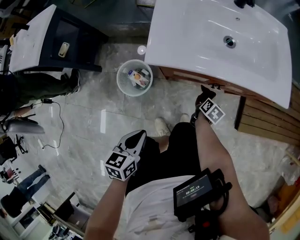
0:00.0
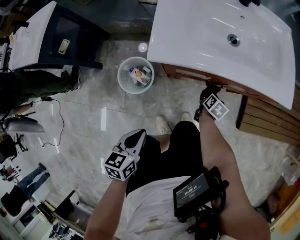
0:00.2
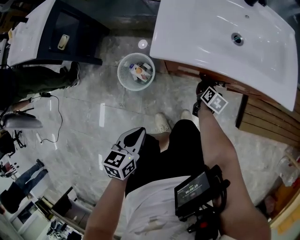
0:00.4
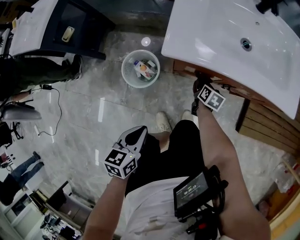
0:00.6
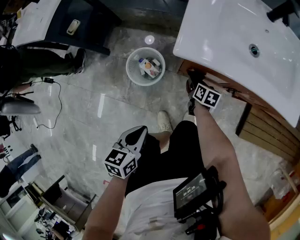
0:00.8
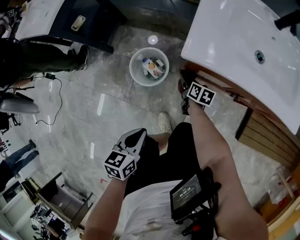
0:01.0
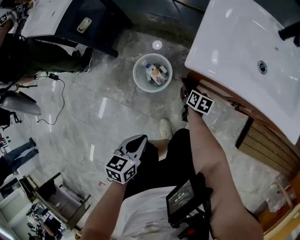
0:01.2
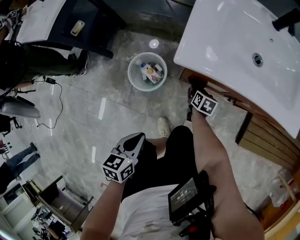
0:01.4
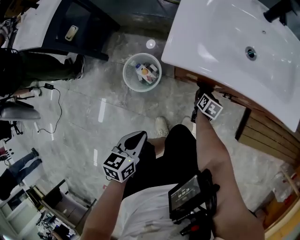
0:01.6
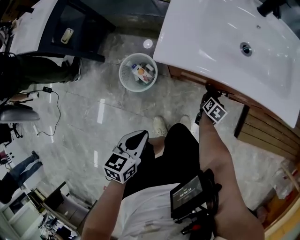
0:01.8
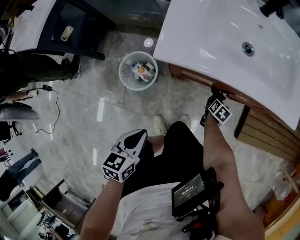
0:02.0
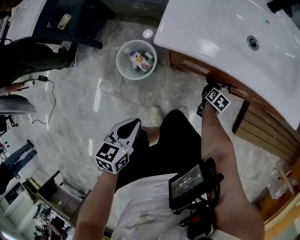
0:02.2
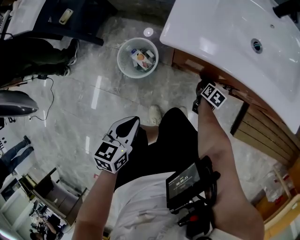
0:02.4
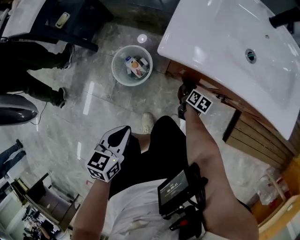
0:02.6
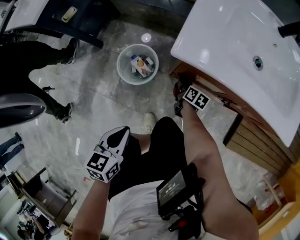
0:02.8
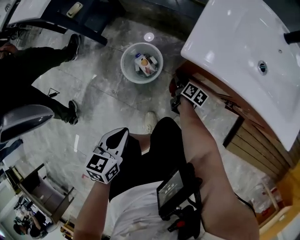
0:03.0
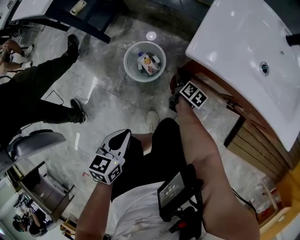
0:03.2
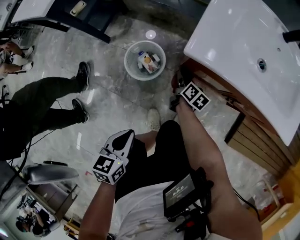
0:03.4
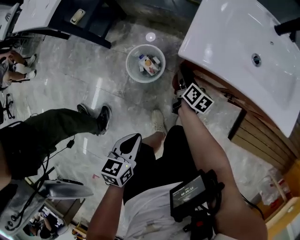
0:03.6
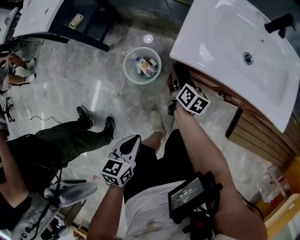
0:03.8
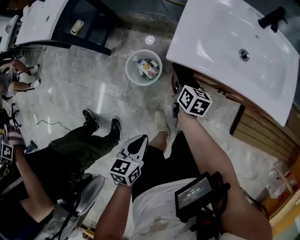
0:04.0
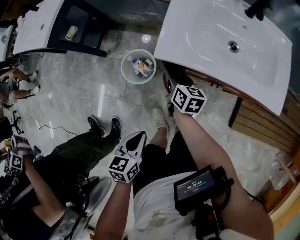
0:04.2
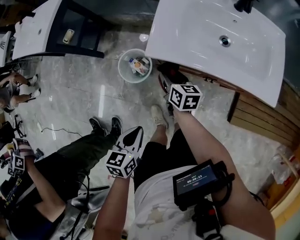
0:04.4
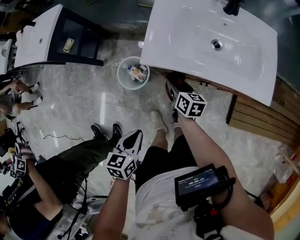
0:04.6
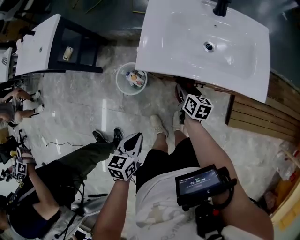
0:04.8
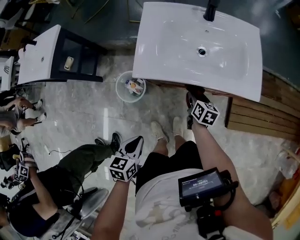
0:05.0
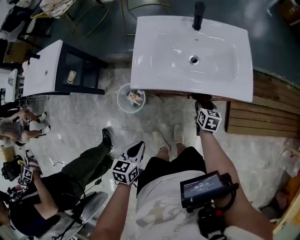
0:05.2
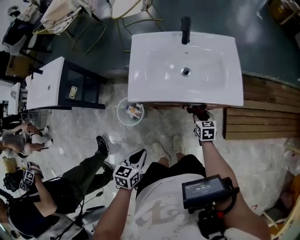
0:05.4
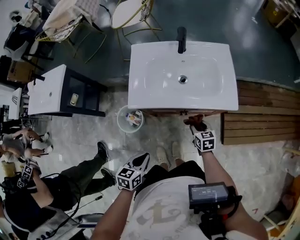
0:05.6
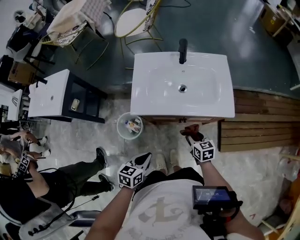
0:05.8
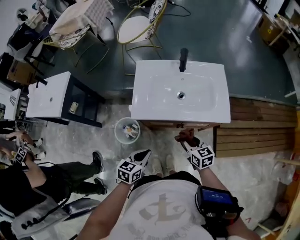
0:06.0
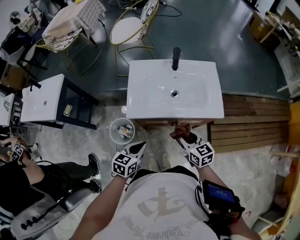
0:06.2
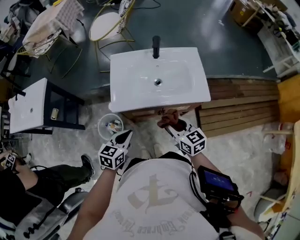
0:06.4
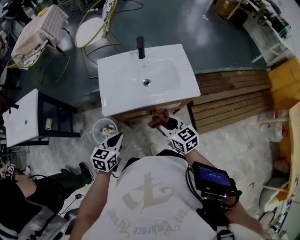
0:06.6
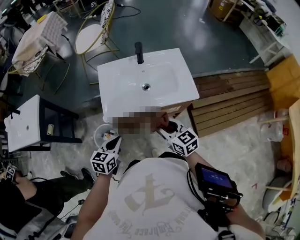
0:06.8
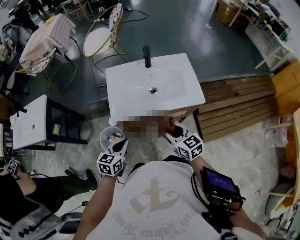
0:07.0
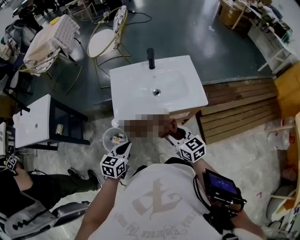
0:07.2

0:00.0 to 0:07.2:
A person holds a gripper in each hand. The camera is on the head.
0:00.0 to 0:01.4: The left gripper ends up about 5 cm from where it was; the right gripper moves approximately 15 cm, and changes its angle by roughly 30 degrees.
0:01.4 to 0:02.8: The right gripper moves downward, about 5 cm.
0:02.8 to 0:04.4: The left gripper is displaced upward and to the right by some 15 cm, while the right gripper moves upward, roughly 30 cm, and turns by some 20 degrees.
0:04.4 to 0:05.8: The right gripper is displaced to the right by approximately 25 cm, while the left gripper is displaced to the right, upward and forward by about 15 cm, and swivels roughly 20 degrees.
0:05.8 to 0:07.2: The left gripper moves upward, approximately 5 cm. Meanwhile the right gripper heads upward, covering about 15 cm.

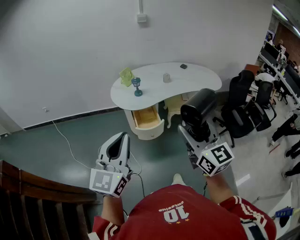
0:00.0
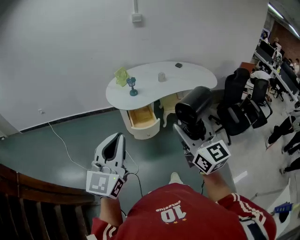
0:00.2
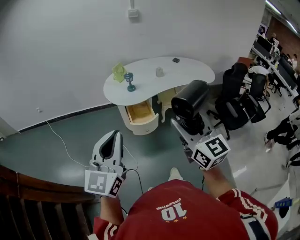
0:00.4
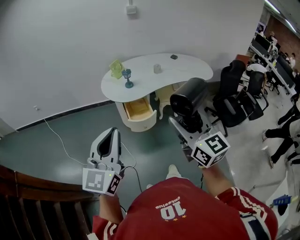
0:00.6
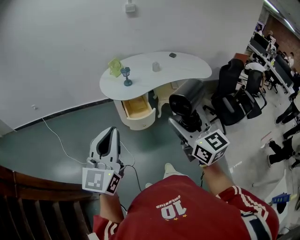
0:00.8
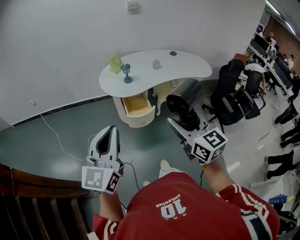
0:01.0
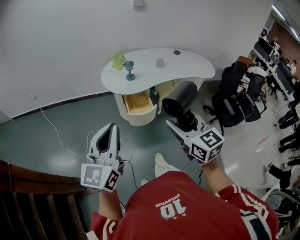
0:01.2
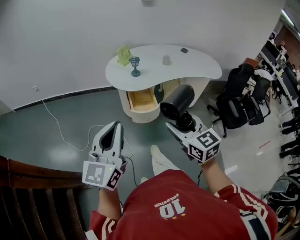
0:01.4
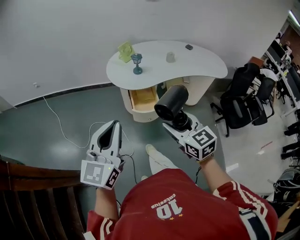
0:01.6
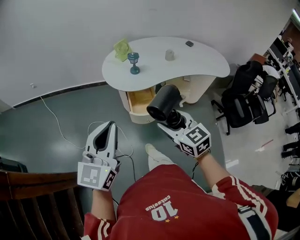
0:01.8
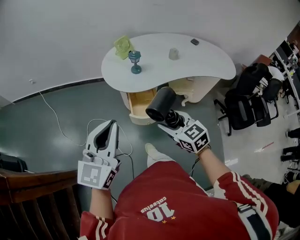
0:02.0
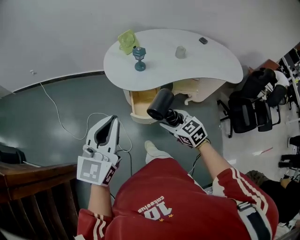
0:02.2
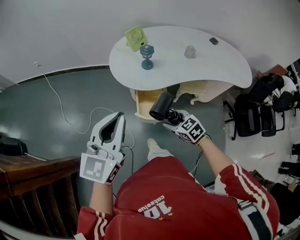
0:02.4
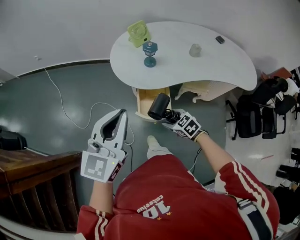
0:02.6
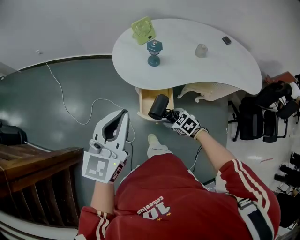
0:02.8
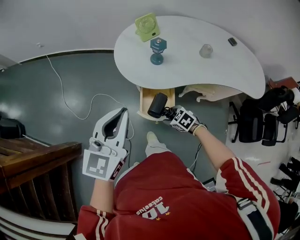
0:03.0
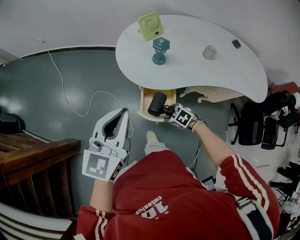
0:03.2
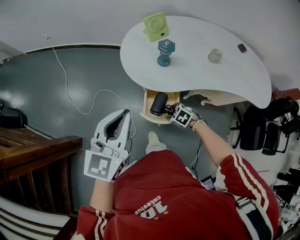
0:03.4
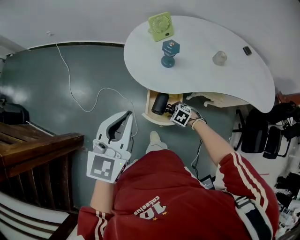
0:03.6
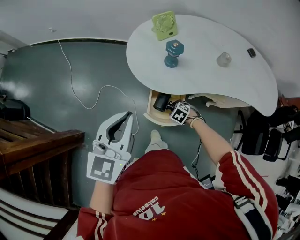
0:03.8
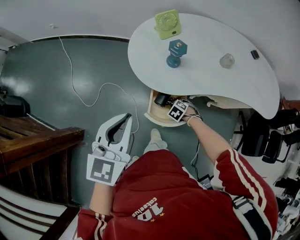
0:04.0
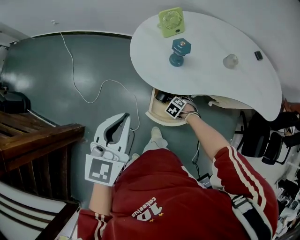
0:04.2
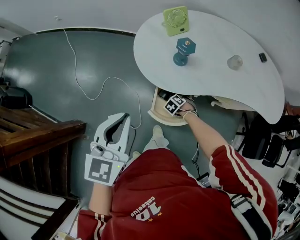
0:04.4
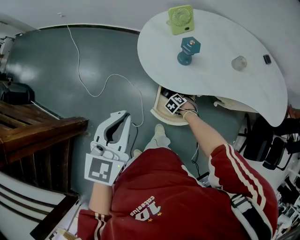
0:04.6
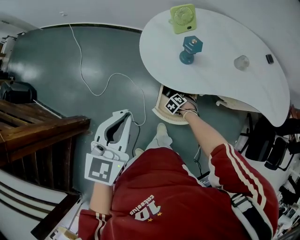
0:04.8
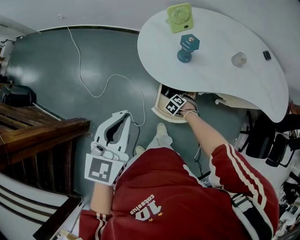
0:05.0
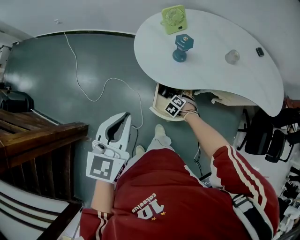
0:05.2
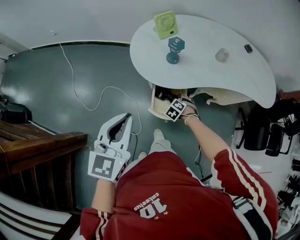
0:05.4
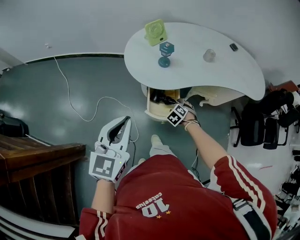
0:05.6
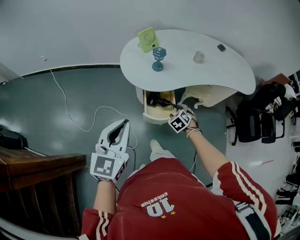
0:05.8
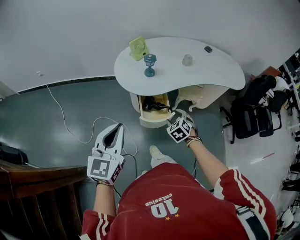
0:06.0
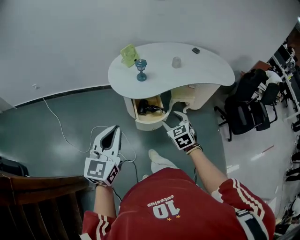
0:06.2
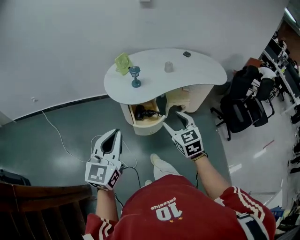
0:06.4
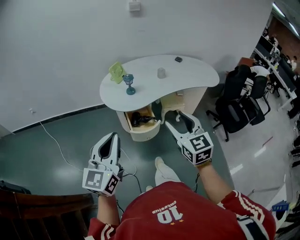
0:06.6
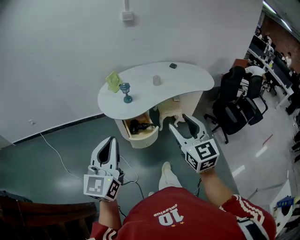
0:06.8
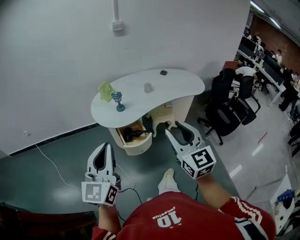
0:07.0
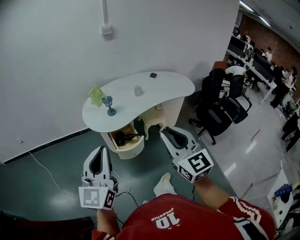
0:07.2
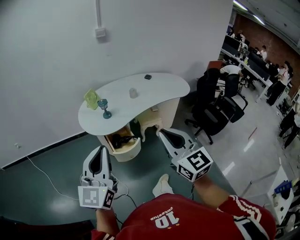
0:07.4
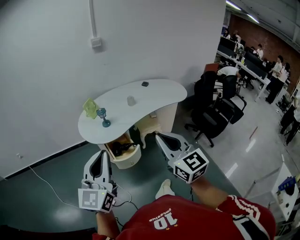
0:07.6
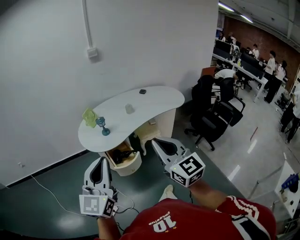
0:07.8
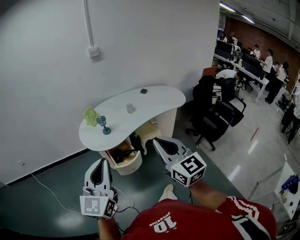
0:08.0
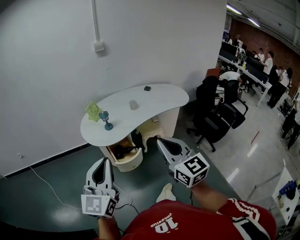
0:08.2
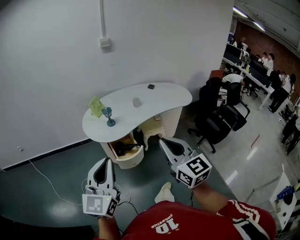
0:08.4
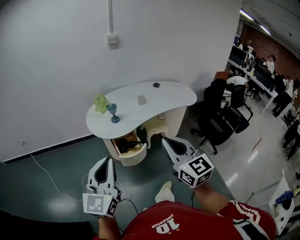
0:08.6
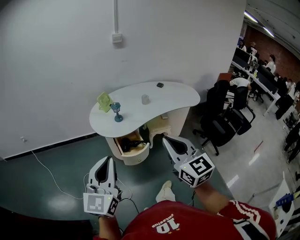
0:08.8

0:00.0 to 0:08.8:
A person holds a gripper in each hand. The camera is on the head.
0:00.0 to 0:01.4: The left gripper goes about 5 cm to the left. Meanwhile the right gripper is displaced downward and to the left by about 15 cm, and changes its angle by about 20 degrees.
0:01.4 to 0:03.0: The right gripper travels downward by approximately 40 cm, and tilts its fingers some 40 degrees downward. Meanwhile the left gripper shifts by about 35 cm.
0:03.0 to 0:04.4: The left gripper moves roughly 5 cm. Meanwhile the right gripper moves downward, about 15 cm, and rotates approximately 30 degrees.
0:04.4 to 0:05.8: The left gripper ends up about 10 cm from where it was; the right gripper moves upward, roughly 20 cm, and changes its angle by approximately 30 degrees.
0:05.8 to 0:07.4: The right gripper goes approximately 50 cm upward and backward, tilts its fingers roughly 60 degrees upward, and closes its fingers, while the left gripper shifts approximately 20 cm upward, backward and to the right, and turns by approximately 30 degrees.
0:07.4 to 0:08.8: The left gripper changes place by about 5 cm.

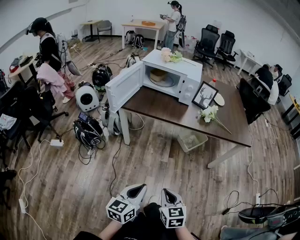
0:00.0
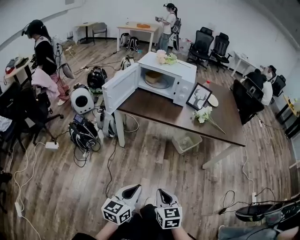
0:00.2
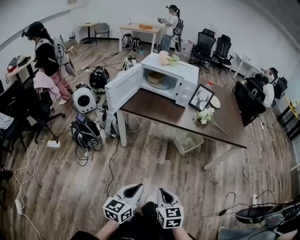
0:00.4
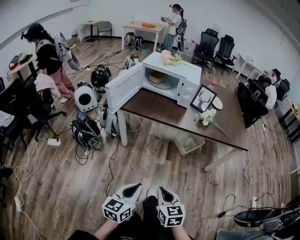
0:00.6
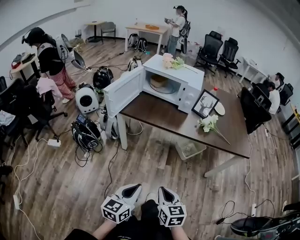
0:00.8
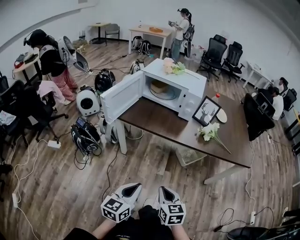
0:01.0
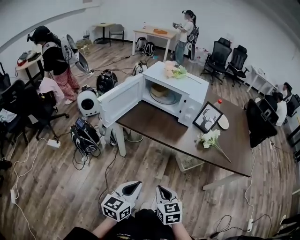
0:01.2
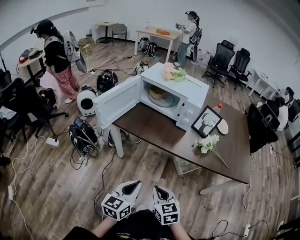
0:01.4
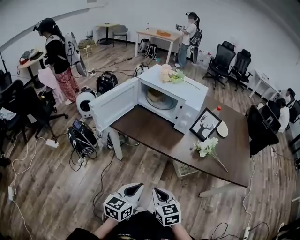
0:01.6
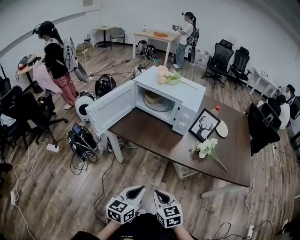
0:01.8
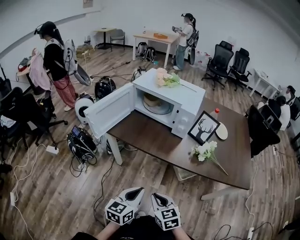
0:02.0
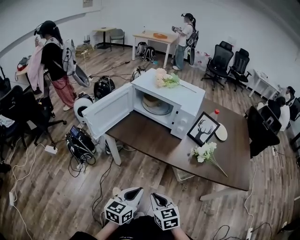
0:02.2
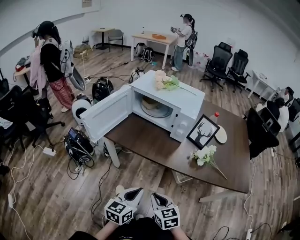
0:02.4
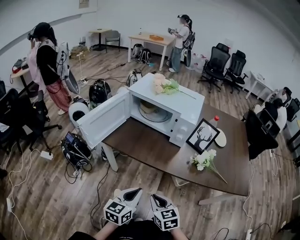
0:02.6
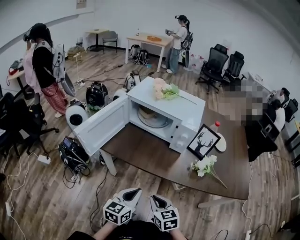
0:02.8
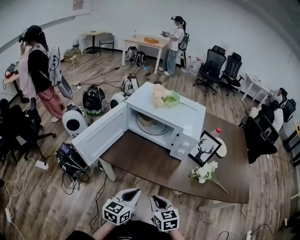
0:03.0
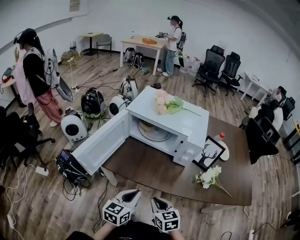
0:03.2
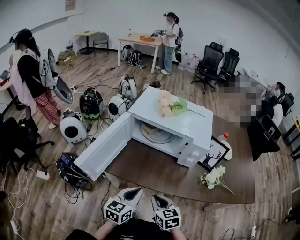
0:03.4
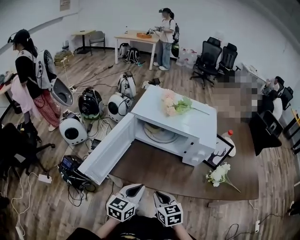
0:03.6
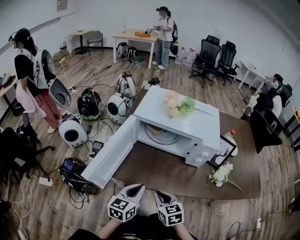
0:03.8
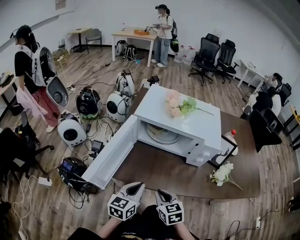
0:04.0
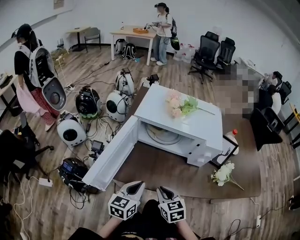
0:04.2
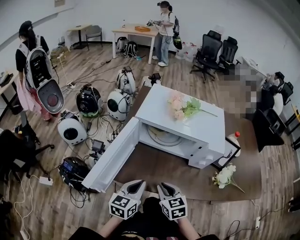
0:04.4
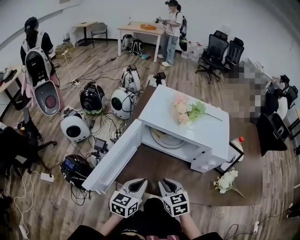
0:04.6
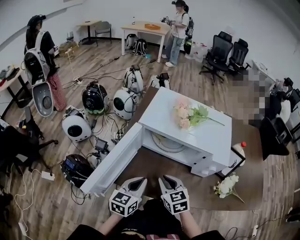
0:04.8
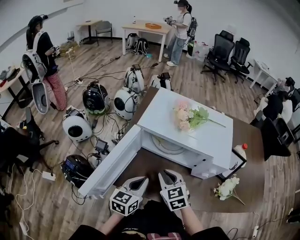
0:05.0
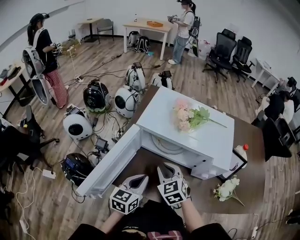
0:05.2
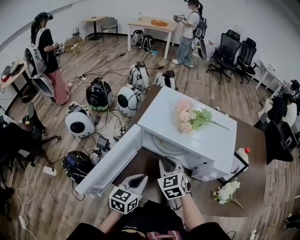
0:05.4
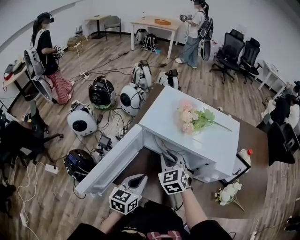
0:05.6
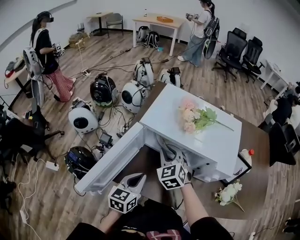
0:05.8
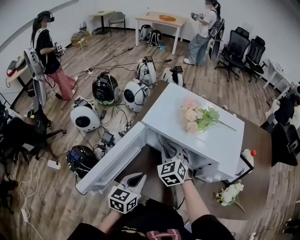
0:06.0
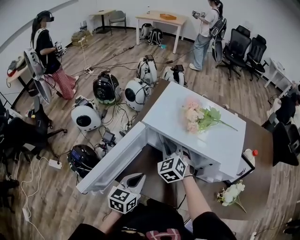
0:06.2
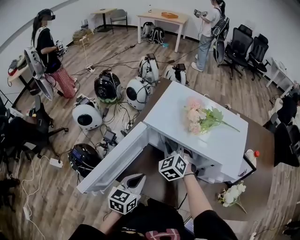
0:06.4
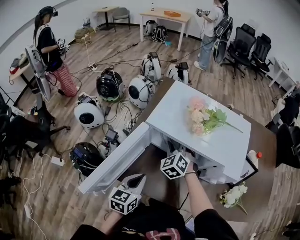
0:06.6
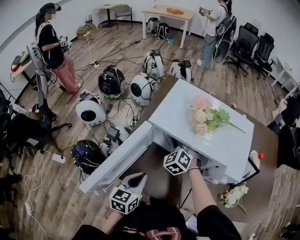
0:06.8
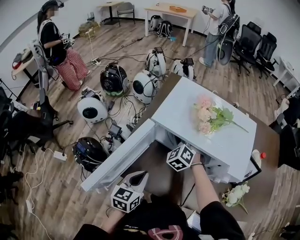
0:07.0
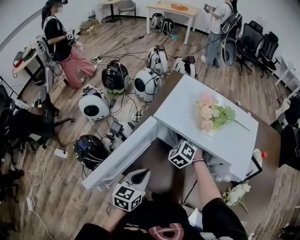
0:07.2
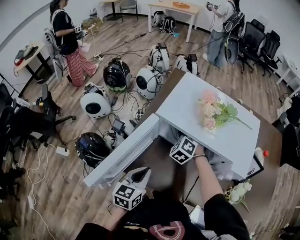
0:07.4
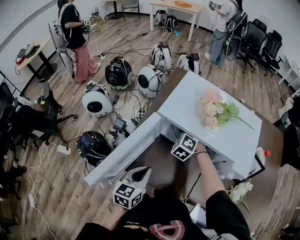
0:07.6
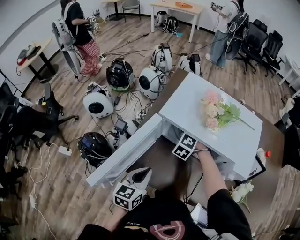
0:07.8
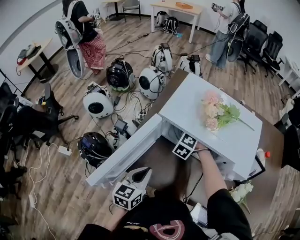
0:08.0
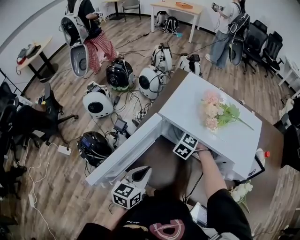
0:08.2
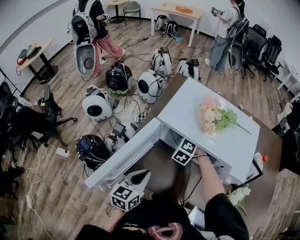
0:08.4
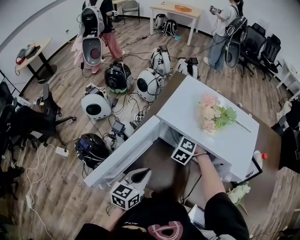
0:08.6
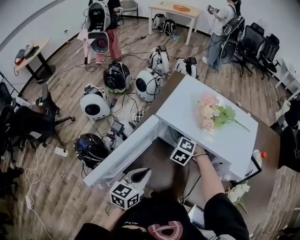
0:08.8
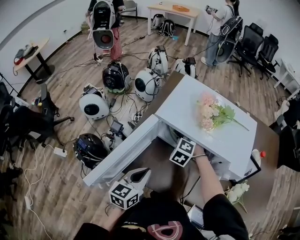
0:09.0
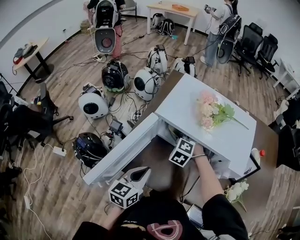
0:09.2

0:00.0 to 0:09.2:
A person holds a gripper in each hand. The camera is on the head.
0:00.0 to 0:01.6: The grippers both shift forward by approximately 20 cm. The right gripper rotates some 20 degrees.
0:01.6 to 0:03.0: Both grippers move forward, some 15 cm.
0:03.0 to 0:04.6: Both grippers move forward and to the left, roughly 20 cm.
0:04.6 to 0:06.2: The right gripper goes some 20 cm forward, and changes its angle by about 40 degrees; the left gripper heads forward, covering roughly 5 cm.
0:06.2 to 0:07.6: The right gripper is displaced downward and forward by roughly 10 cm, and changes its angle by about 30 degrees.
0:07.6 to 0:09.2: The right gripper changes place by approximately 5 cm, and closes up.
